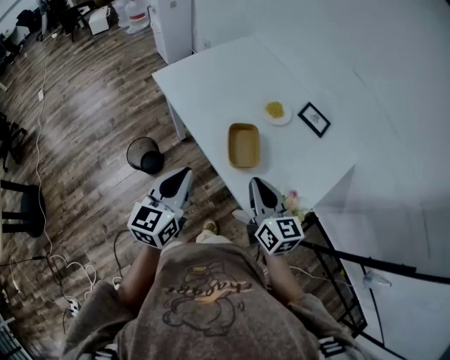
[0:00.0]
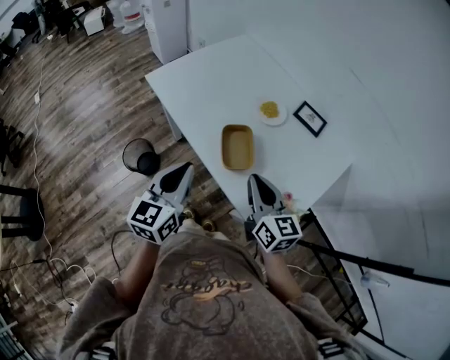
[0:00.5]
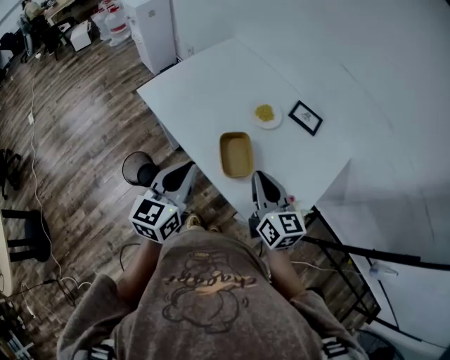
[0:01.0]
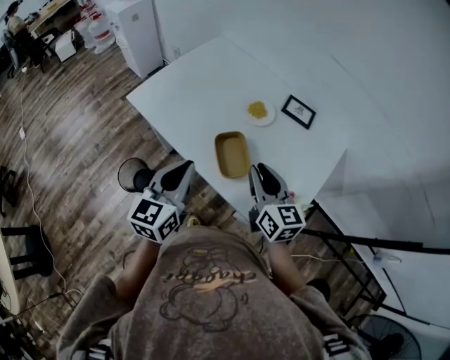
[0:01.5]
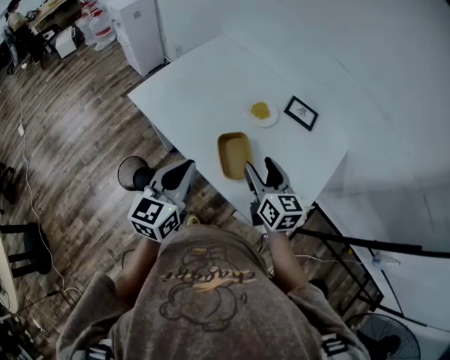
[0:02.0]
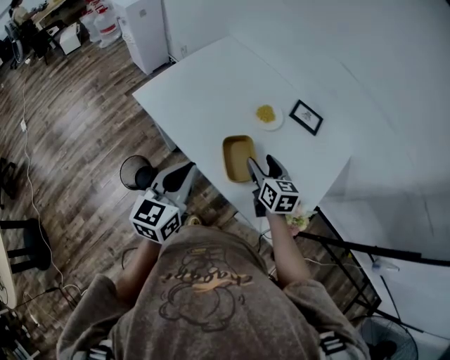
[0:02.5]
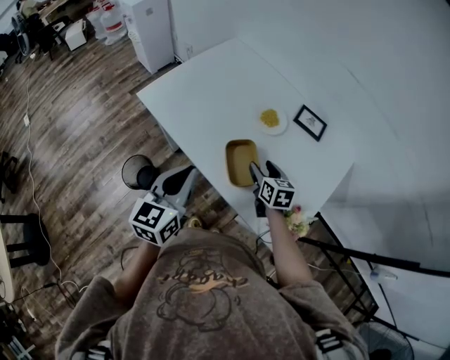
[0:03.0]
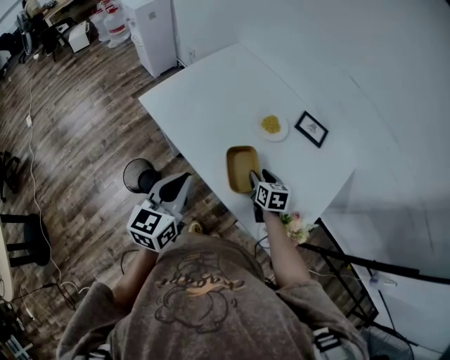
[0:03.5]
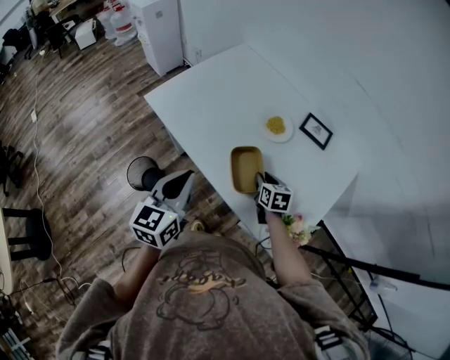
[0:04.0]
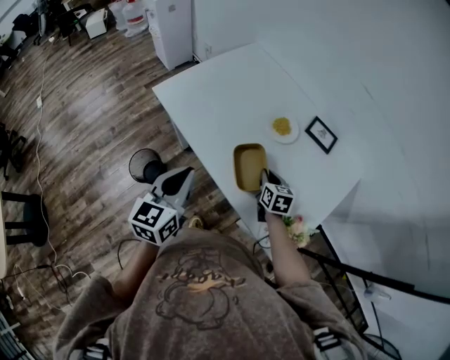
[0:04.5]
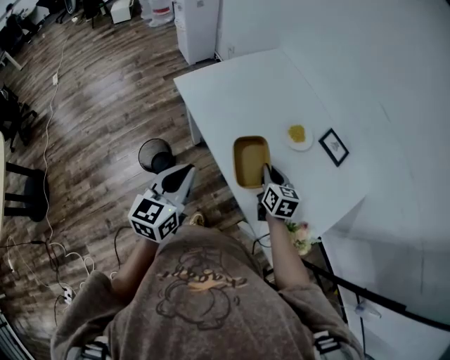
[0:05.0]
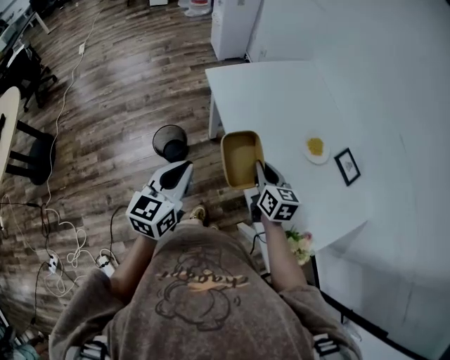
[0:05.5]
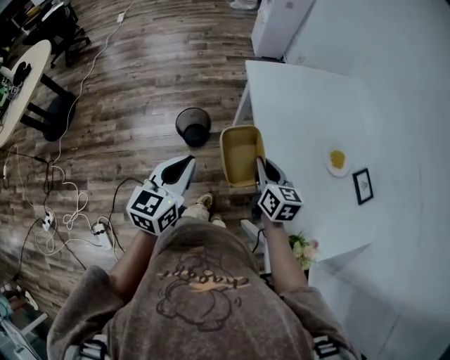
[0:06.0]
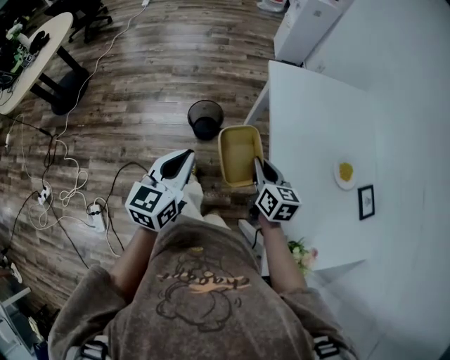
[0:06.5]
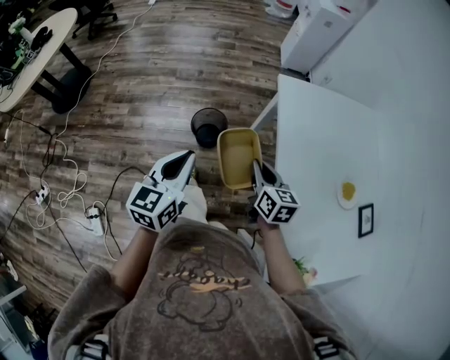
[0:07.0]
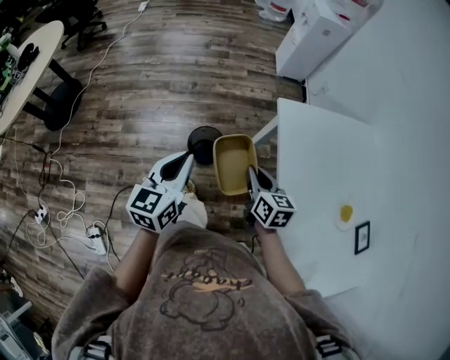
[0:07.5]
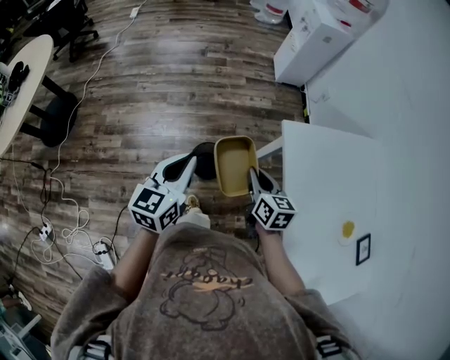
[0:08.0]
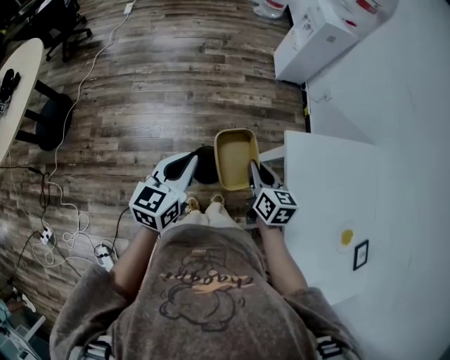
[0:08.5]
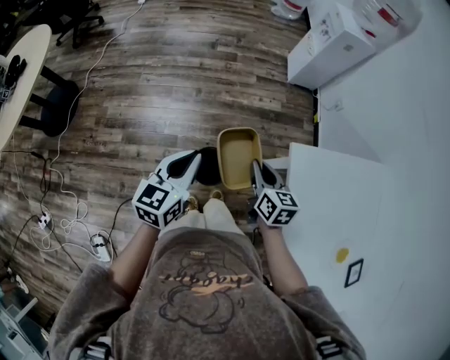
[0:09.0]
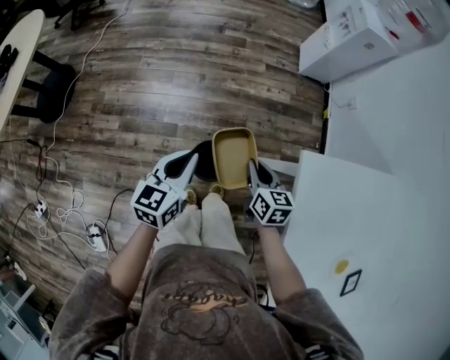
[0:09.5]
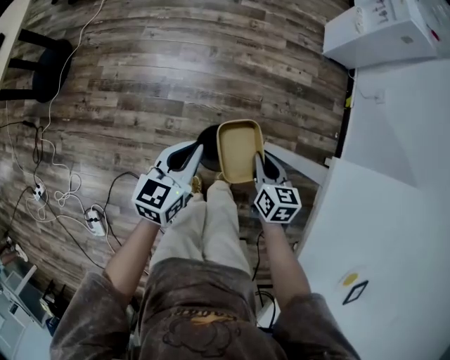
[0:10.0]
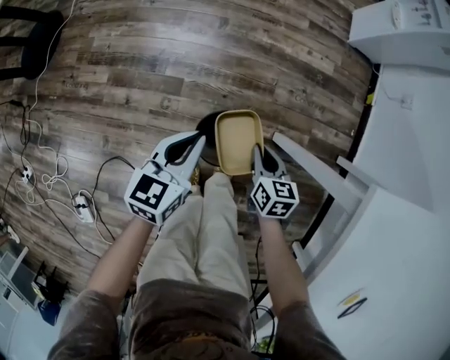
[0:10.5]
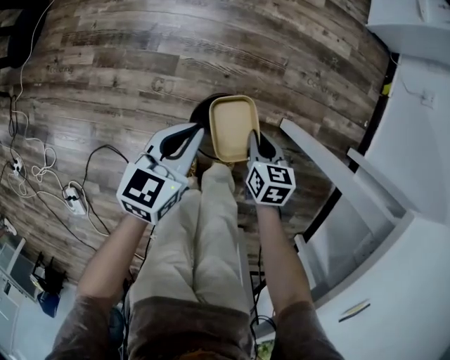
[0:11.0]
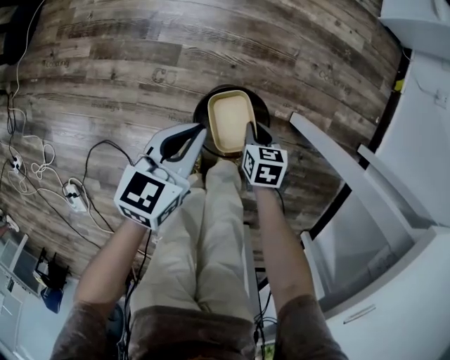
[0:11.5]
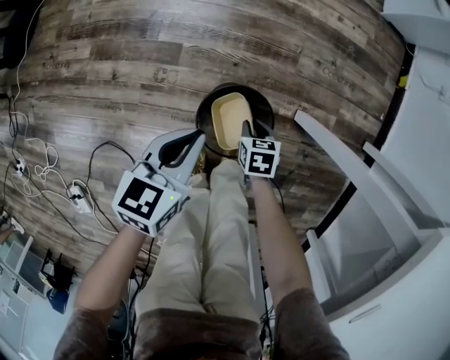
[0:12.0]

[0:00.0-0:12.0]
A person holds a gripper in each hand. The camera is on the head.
0:00.0 to 0:02.0: The two grippers go approximately 10 cm forward. The right gripper opens its fingers.
0:02.0 to 0:04.0: The right gripper heads downward, covering some 15 cm, changes its angle by roughly 30 degrees, and closes.
0:04.0 to 0:06.0: The left gripper moves approximately 20 cm, and swivels roughly 30 degrees, while the right gripper changes place by some 25 cm, and rotates some 40 degrees.
0:06.0 to 0:08.0: The grippers both shift forward and to the left by approximately 35 cm.
0:08.0 to 0:10.0: The two grippers go about 35 cm downward and forward.
0:10.0 to 0:12.0: The two grippers go roughly 40 cm downward. The right gripper swivels approximately 30 degrees.

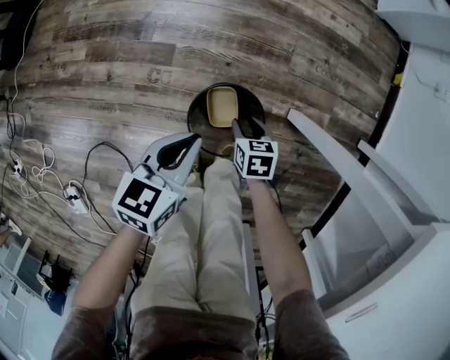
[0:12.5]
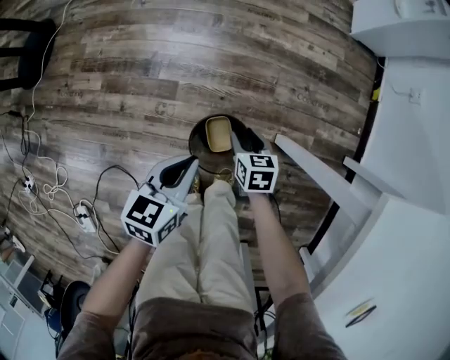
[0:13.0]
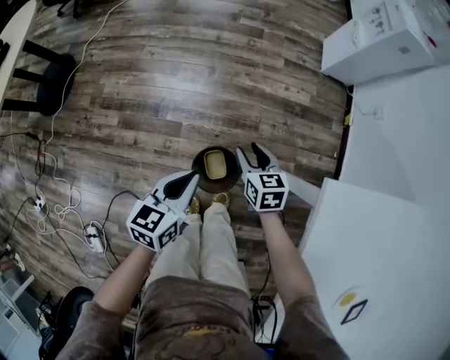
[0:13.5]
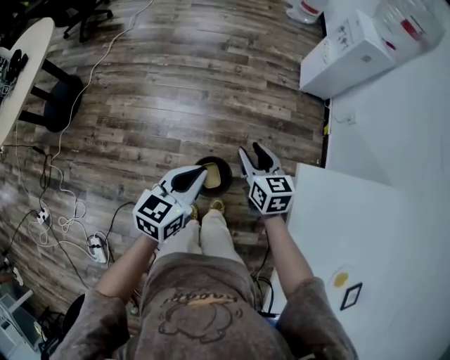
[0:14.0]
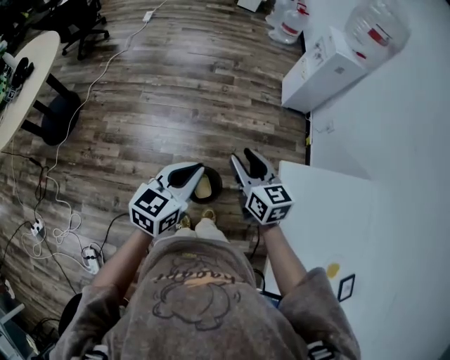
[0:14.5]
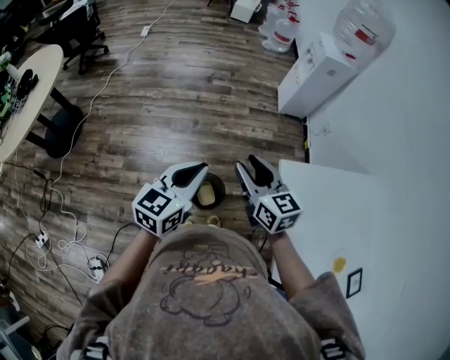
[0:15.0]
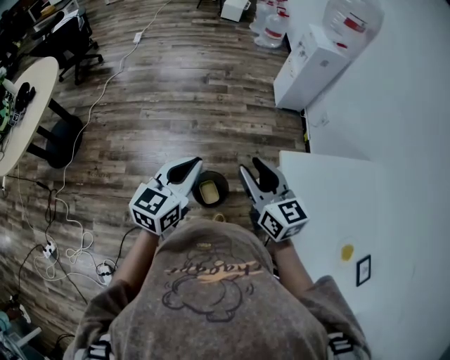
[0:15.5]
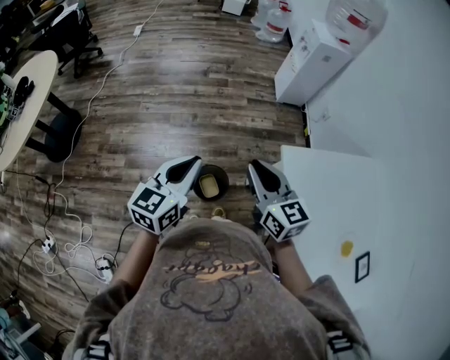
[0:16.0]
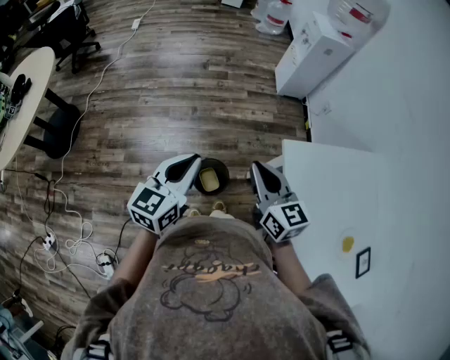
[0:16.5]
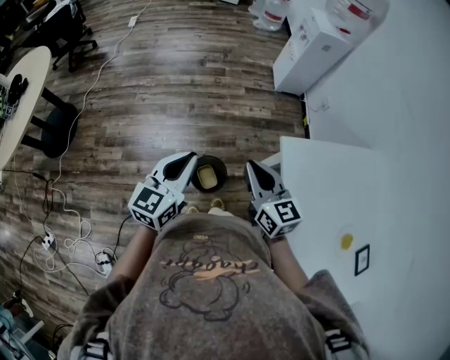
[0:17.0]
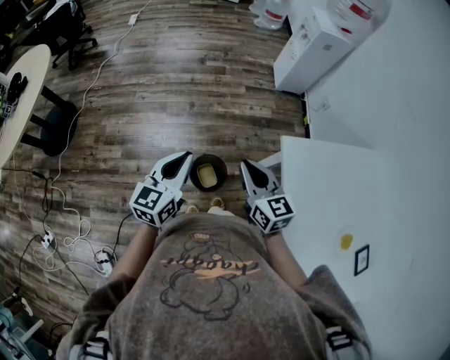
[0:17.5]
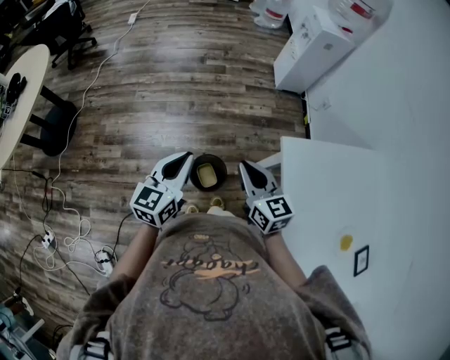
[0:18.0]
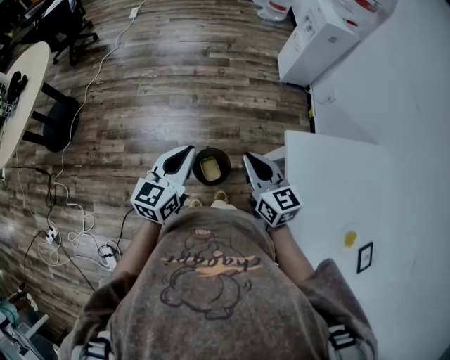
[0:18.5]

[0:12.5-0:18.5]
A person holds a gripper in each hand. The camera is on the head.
0:12.5 to 0:14.5: The grippers both shift upward by approximately 70 cm. The left gripper rotates about 30 degrees, while the right gripper angles its fingers upward, by roughly 40 degrees.
0:14.5 to 0:16.5: The right gripper is displaced backward and upward by some 10 cm, and closes up, while the left gripper shifts by roughly 5 cm.
0:16.5 to 0:18.5: The two grippers go about 5 cm downward.

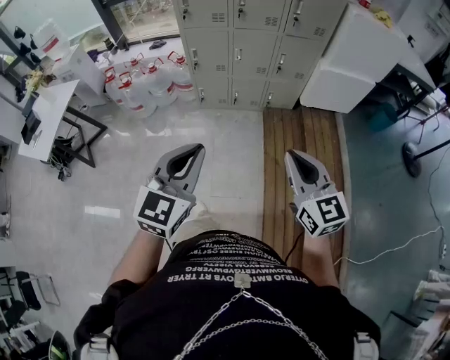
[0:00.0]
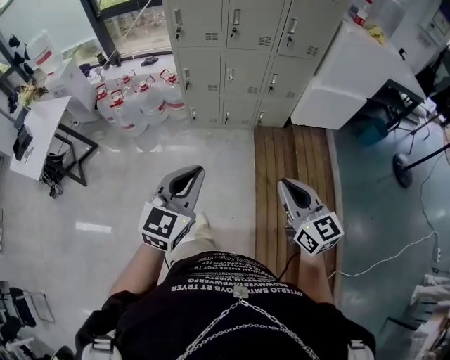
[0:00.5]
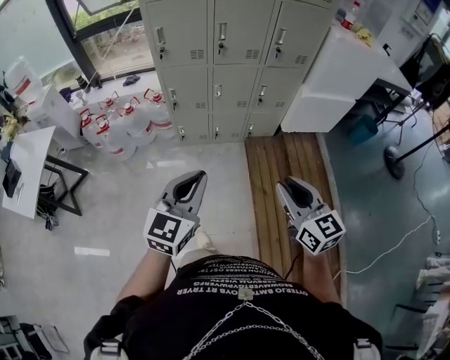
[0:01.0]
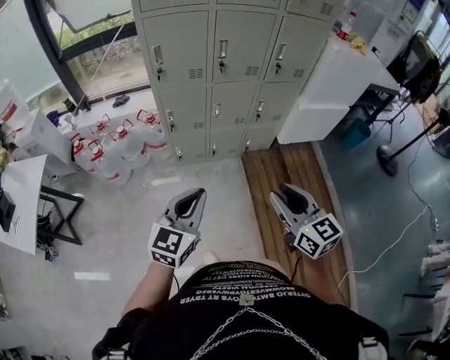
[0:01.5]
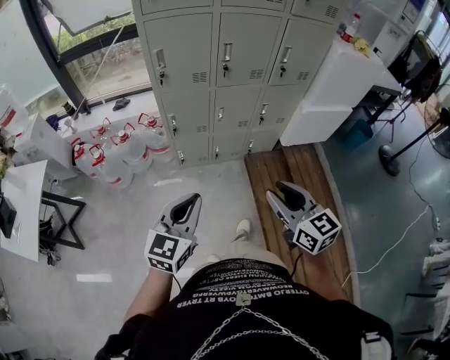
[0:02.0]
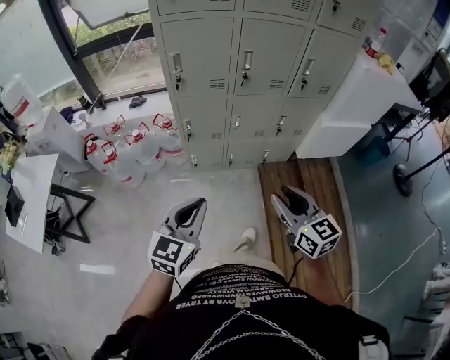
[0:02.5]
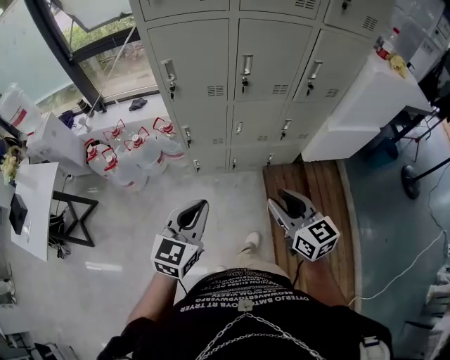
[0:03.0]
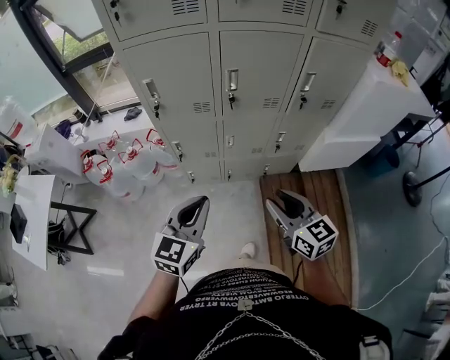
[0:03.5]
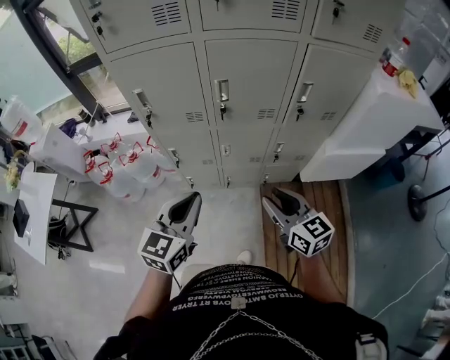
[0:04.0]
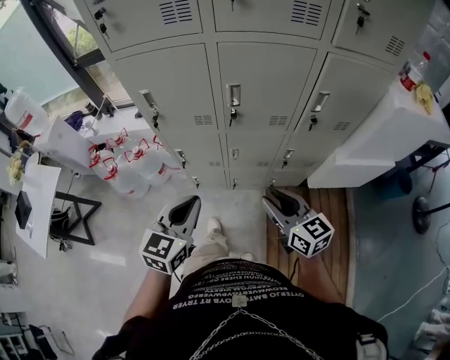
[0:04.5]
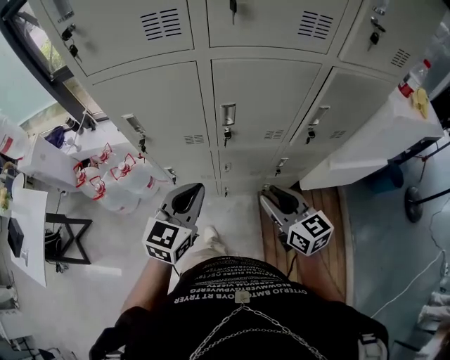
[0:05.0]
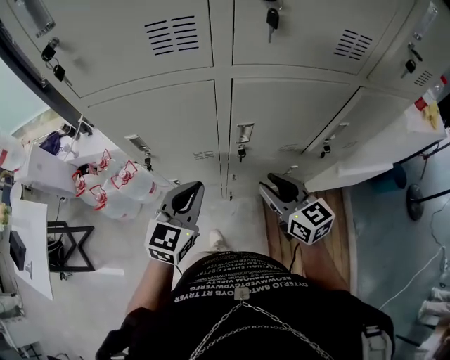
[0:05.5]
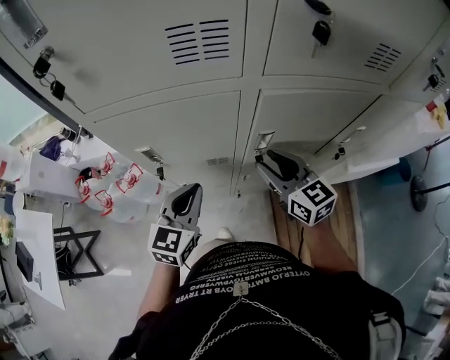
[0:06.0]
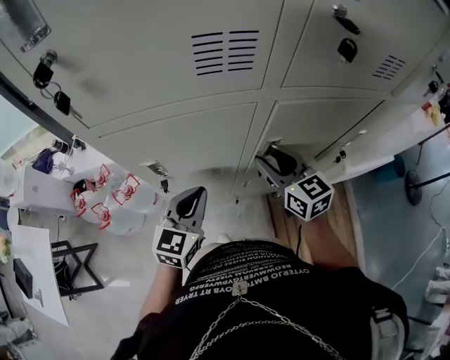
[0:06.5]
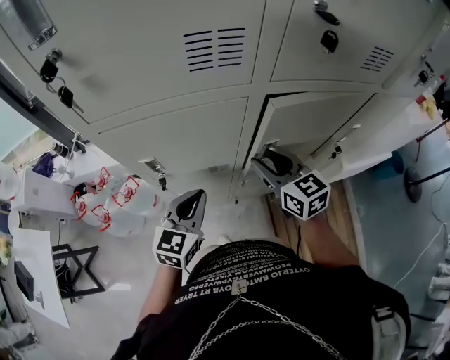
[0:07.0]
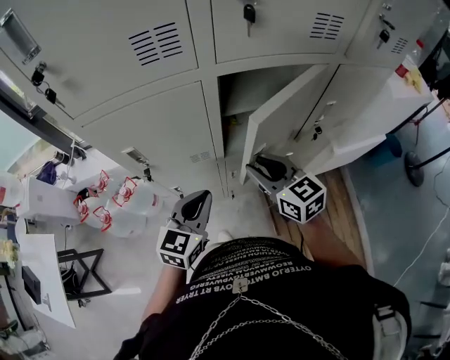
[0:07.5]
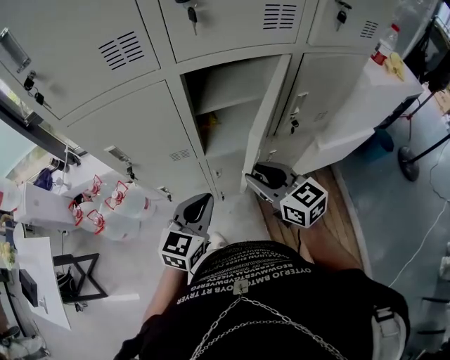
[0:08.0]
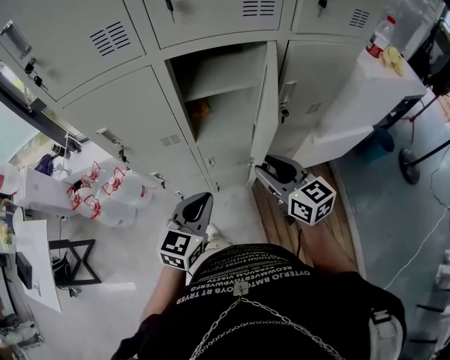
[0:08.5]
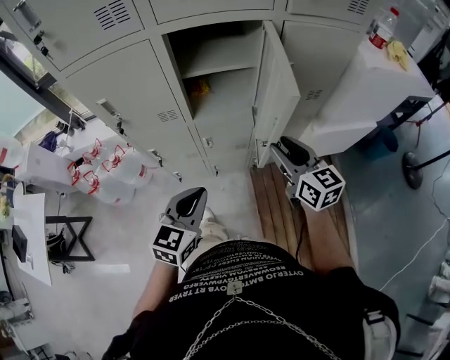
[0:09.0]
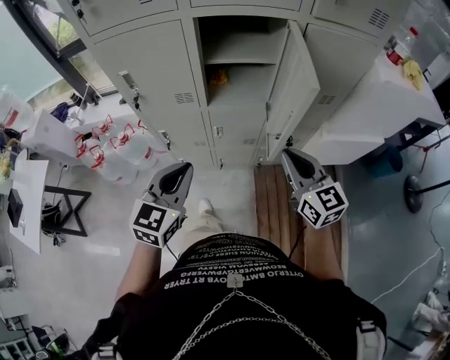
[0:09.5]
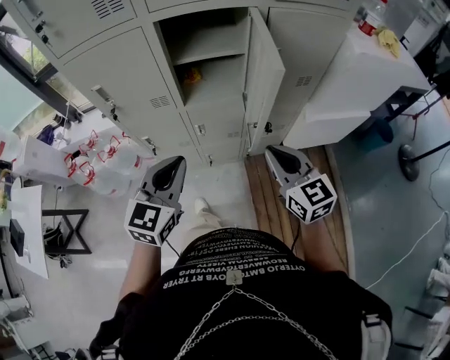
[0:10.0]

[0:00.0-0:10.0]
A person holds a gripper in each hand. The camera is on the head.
0:00.0 to 0:02.0: Both grippers travel together forward and to the left, about 30 cm. The right gripper opens its fingers.
0:02.0 to 0:04.0: Both grippers move forward and to the right, some 30 cm.
0:04.0 to 0:06.0: The grippers both shift forward by roughly 30 cm.
0:06.0 to 0:08.0: The right gripper heads backward and to the right, covering some 15 cm; the left gripper goes about 15 cm to the right and backward.
0:08.0 to 0:10.0: The left gripper shifts about 10 cm backward. The right gripper moves backward and to the right, approximately 20 cm, and closes up.
